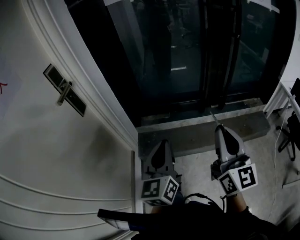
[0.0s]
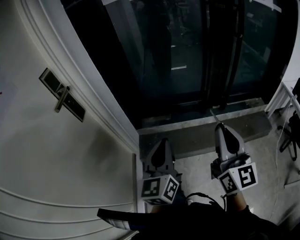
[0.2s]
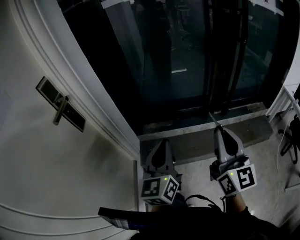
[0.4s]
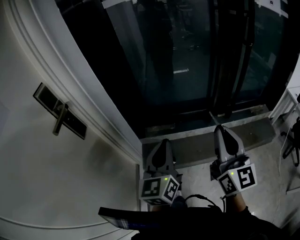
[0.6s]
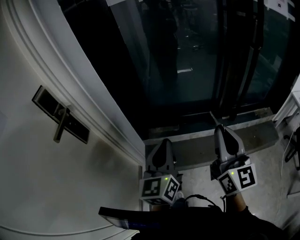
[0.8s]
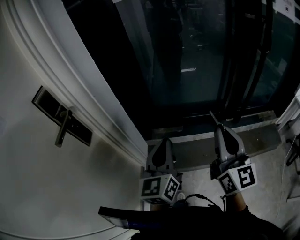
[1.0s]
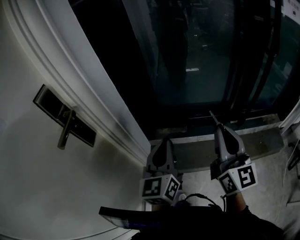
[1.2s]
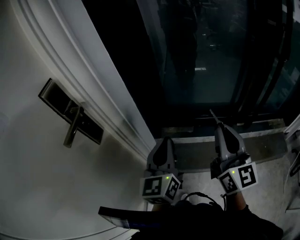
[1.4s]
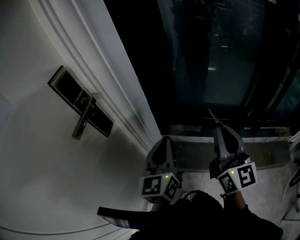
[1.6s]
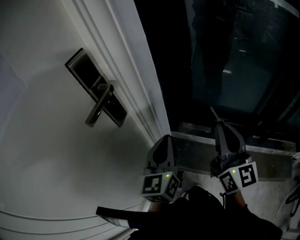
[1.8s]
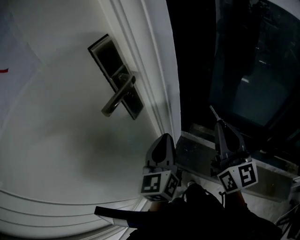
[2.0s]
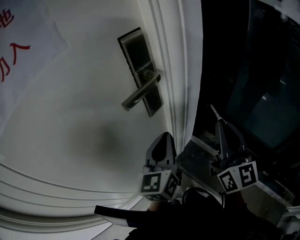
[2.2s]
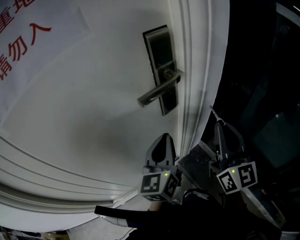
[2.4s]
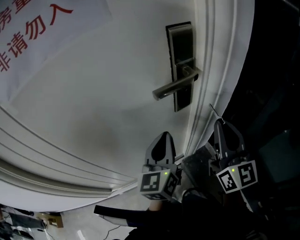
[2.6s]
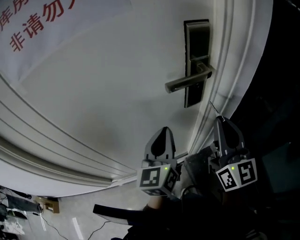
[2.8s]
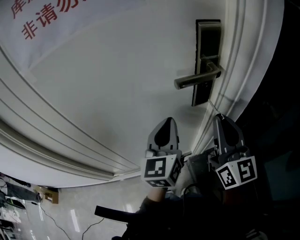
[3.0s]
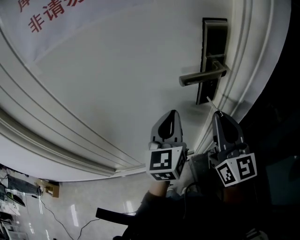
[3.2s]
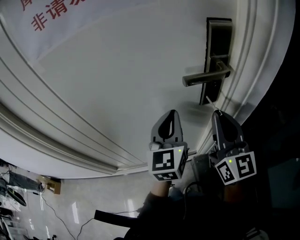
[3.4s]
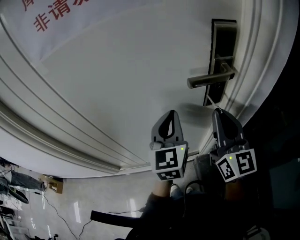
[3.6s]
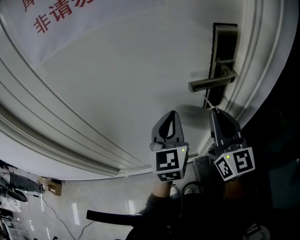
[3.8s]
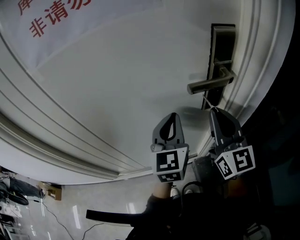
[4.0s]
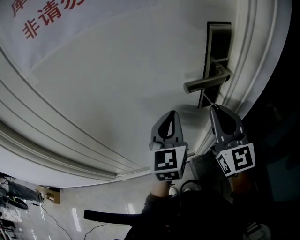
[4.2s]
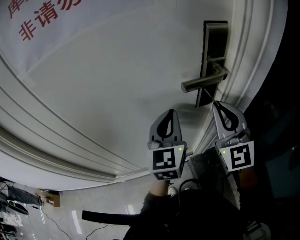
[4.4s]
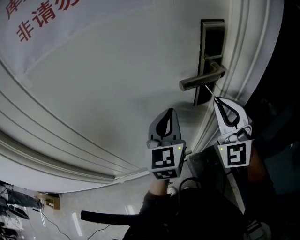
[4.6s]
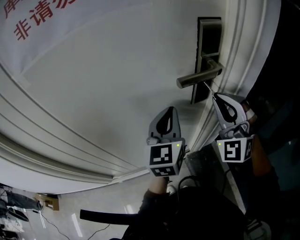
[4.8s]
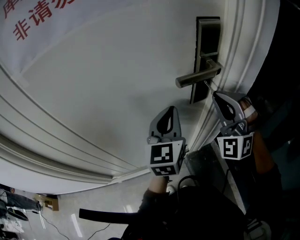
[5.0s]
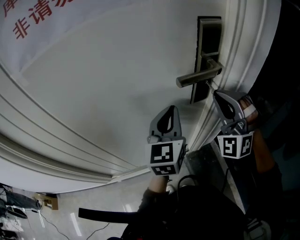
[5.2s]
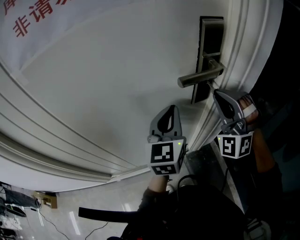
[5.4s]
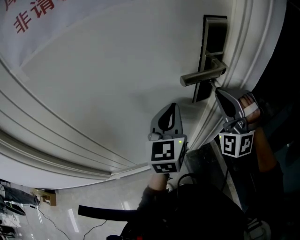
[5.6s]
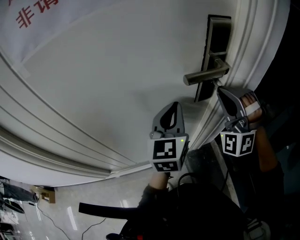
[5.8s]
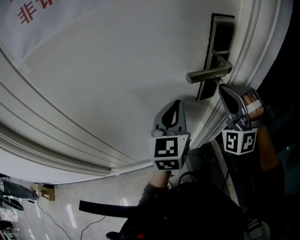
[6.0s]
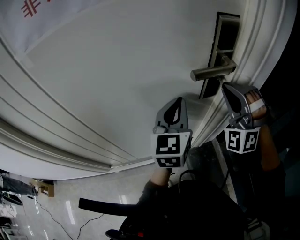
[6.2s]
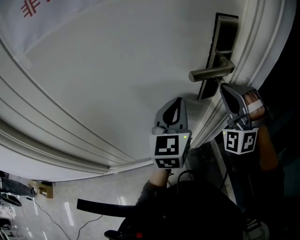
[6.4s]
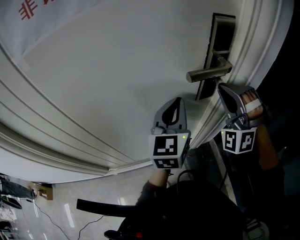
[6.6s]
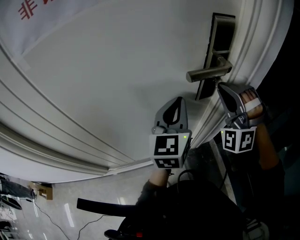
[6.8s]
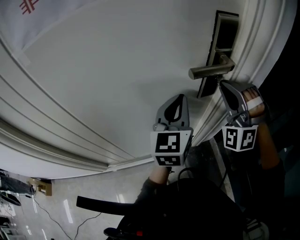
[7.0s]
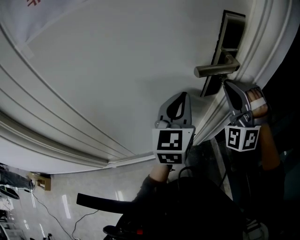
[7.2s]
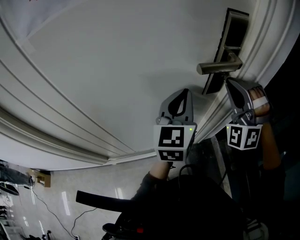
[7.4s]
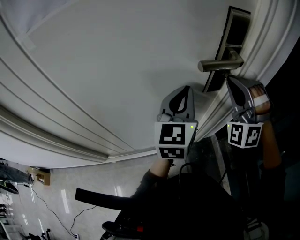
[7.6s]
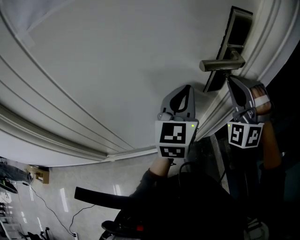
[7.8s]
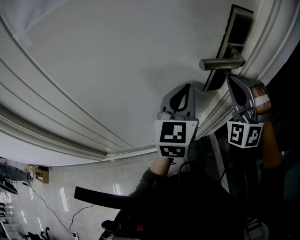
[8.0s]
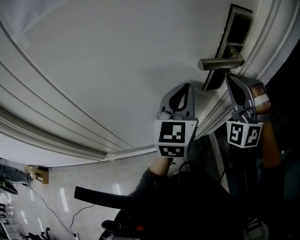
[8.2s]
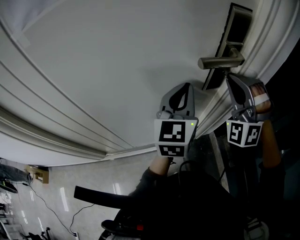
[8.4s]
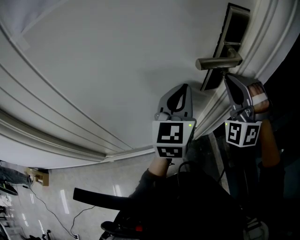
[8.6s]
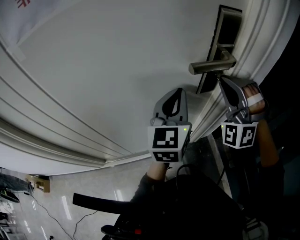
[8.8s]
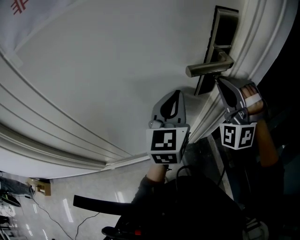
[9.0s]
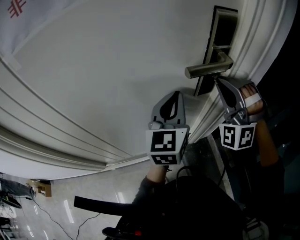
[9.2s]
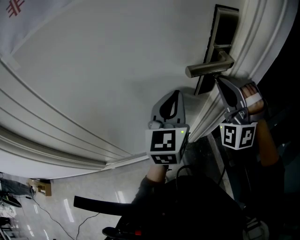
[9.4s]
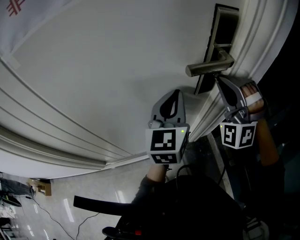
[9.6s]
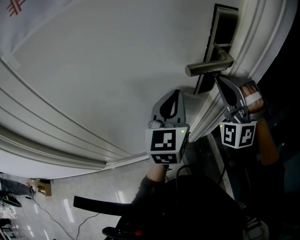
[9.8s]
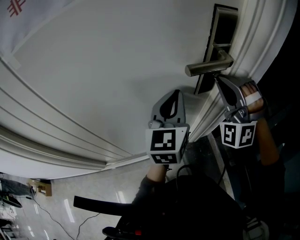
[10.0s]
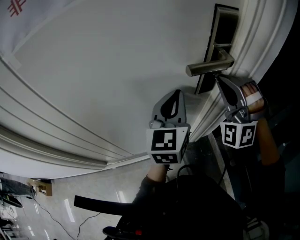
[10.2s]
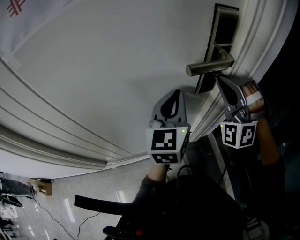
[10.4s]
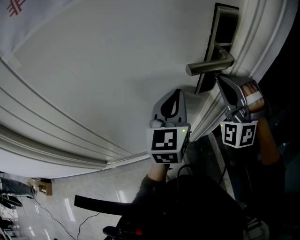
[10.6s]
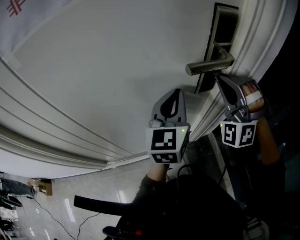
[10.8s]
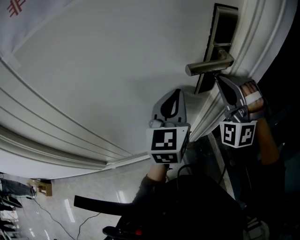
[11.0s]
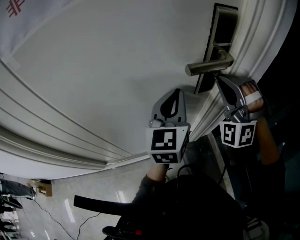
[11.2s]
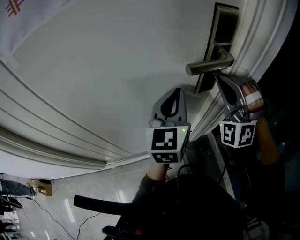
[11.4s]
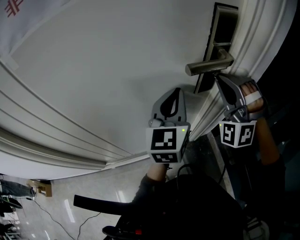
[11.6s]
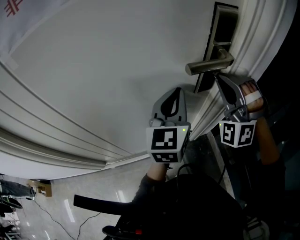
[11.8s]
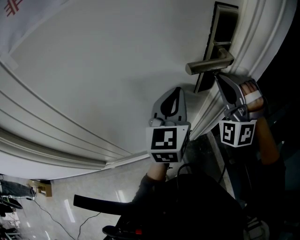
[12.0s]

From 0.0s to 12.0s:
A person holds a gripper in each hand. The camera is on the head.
From 0.0s to 1.6s: The two grippers go approximately 30 cm forward and to the left.
From 1.6s to 3.0s: The left gripper shifts by about 25 cm, and turns by about 60 degrees; the right gripper changes place by about 30 cm, and swivels approximately 60 degrees.
From 3.0s to 4.4s: The right gripper moves forward, about 5 cm, and rotates roughly 30 degrees.
From 4.4s to 6.0s: The right gripper rolls counterclockwise, seen from behind, by about 60 degrees.
From 6.0s to 10.4s: Neither gripper changes place.
From 10.4s to 12.0s: Neither gripper changes place.

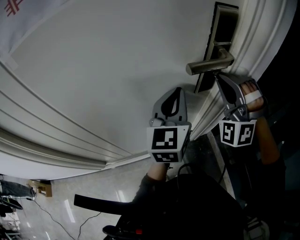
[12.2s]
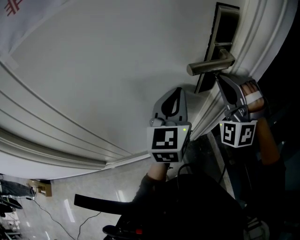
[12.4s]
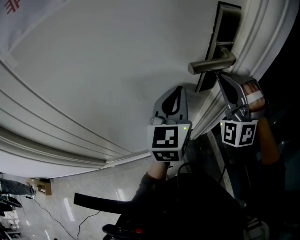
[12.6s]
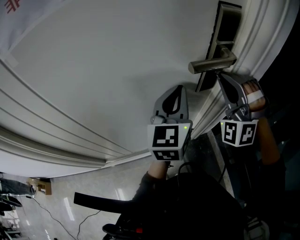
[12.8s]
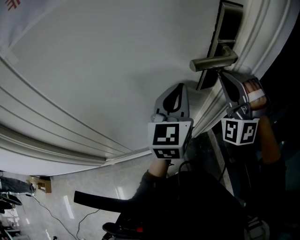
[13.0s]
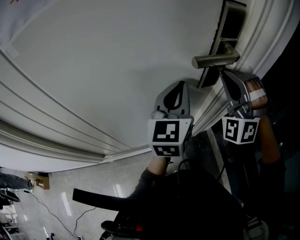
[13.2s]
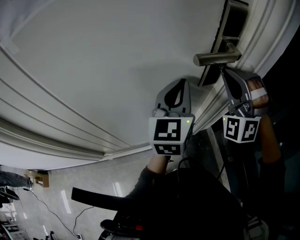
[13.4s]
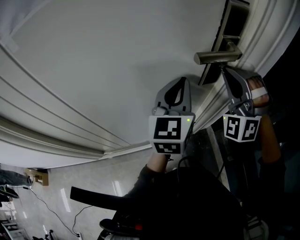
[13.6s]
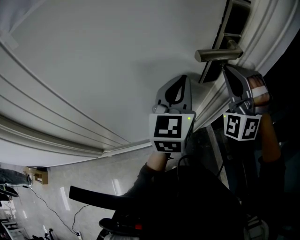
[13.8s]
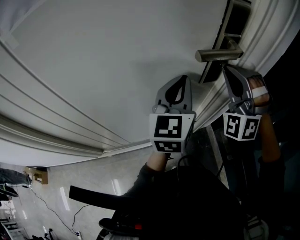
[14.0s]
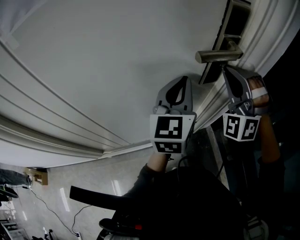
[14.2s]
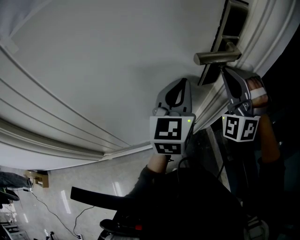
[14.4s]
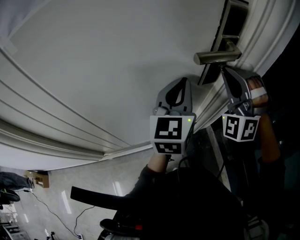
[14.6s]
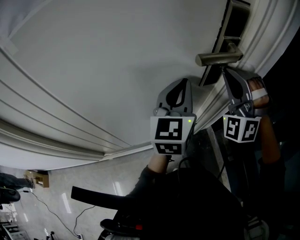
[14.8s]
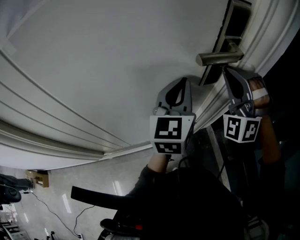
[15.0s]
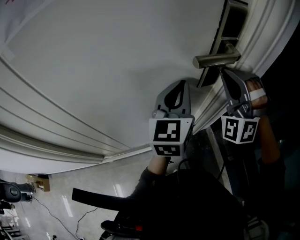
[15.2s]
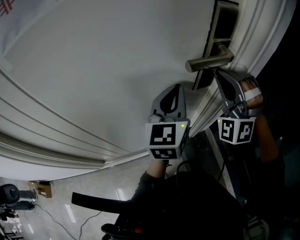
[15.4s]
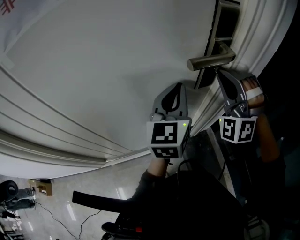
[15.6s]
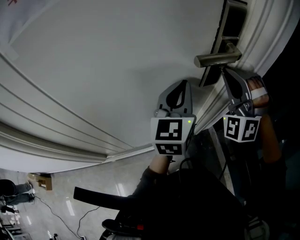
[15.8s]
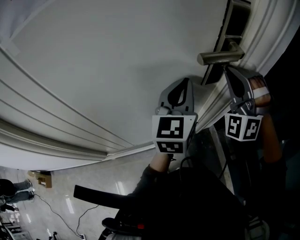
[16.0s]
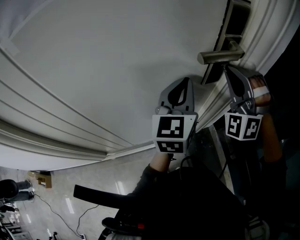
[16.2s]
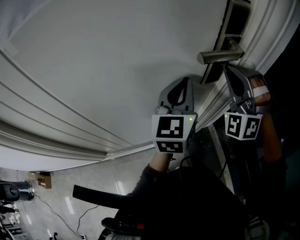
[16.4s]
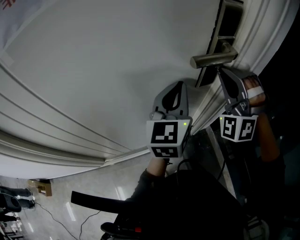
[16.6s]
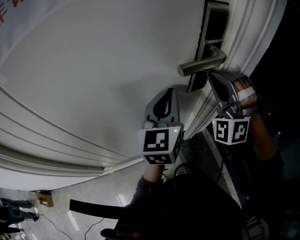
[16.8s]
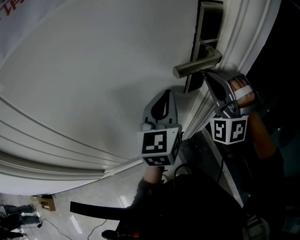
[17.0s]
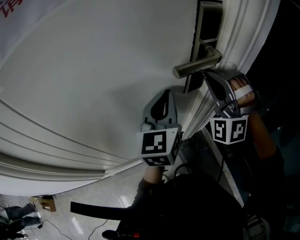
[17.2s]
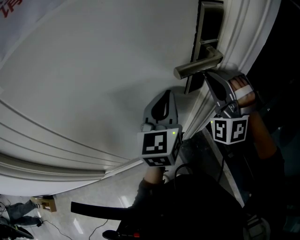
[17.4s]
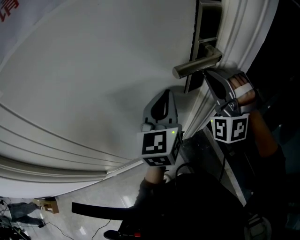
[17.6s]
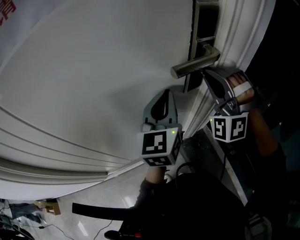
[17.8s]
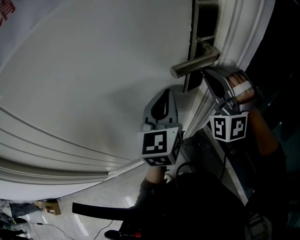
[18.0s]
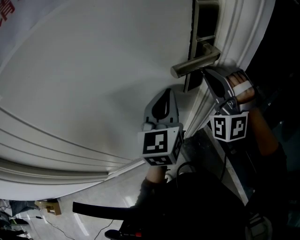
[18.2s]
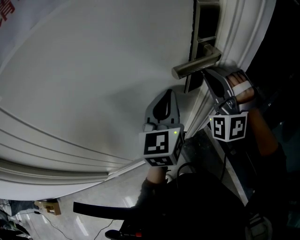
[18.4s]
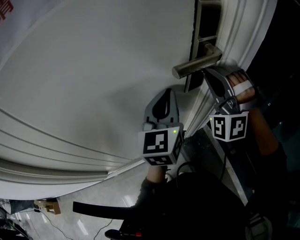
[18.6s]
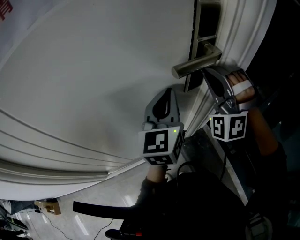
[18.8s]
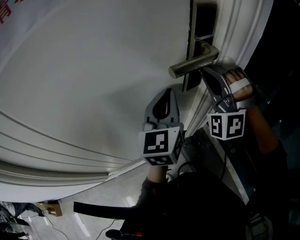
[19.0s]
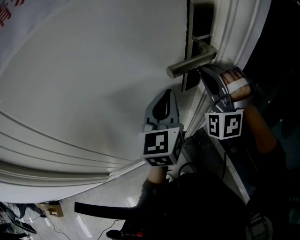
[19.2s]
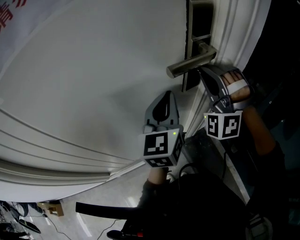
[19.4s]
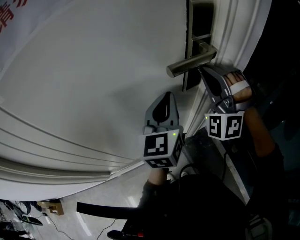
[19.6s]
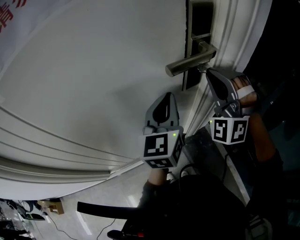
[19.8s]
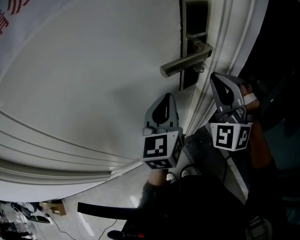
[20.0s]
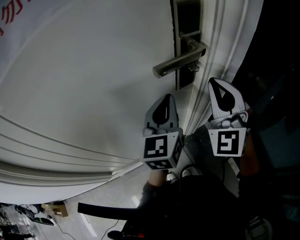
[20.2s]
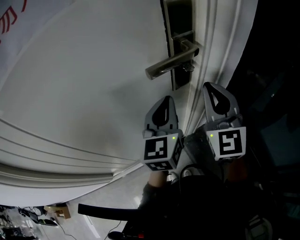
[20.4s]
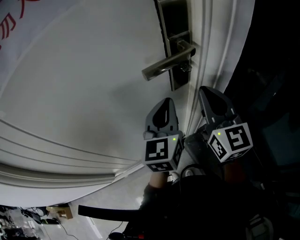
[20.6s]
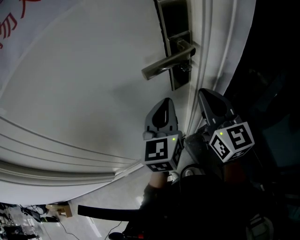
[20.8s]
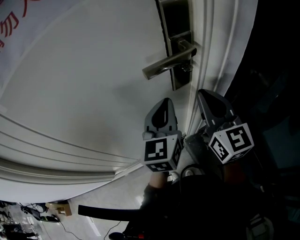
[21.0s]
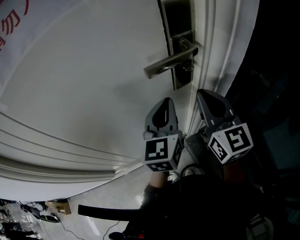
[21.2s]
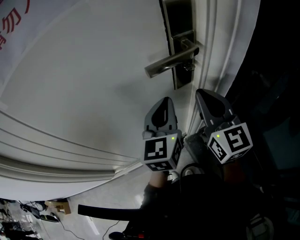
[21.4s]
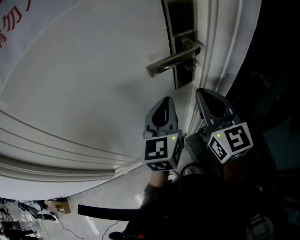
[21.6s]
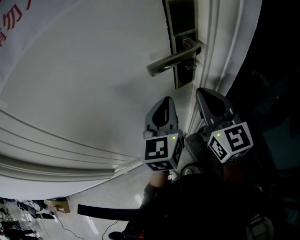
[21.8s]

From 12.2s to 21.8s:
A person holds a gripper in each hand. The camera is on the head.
From 12.2s to 18.6s: Both grippers stay about where they are.
From 18.6s to 20.2s: The right gripper ends up about 5 cm from where it was, and rolls clockwise, seen from behind, by approximately 40 degrees.
From 20.2s to 21.8s: The right gripper twists some 50 degrees clockwise, seen from behind.

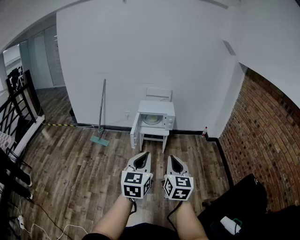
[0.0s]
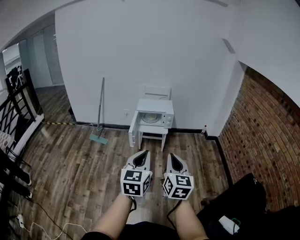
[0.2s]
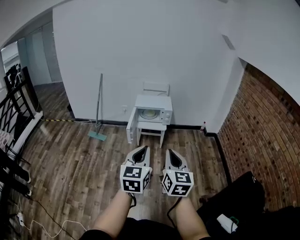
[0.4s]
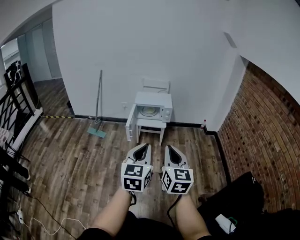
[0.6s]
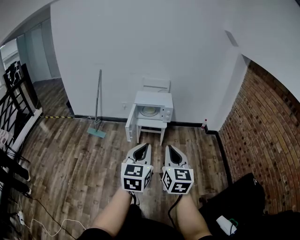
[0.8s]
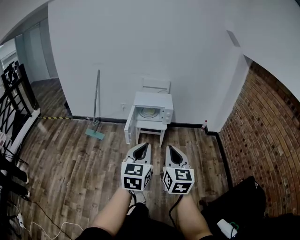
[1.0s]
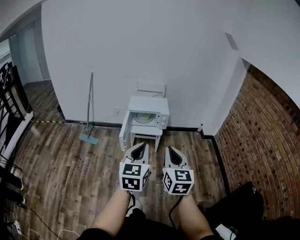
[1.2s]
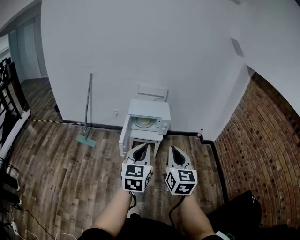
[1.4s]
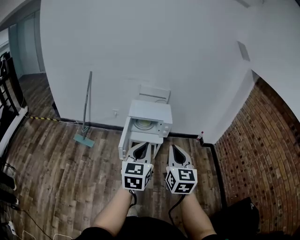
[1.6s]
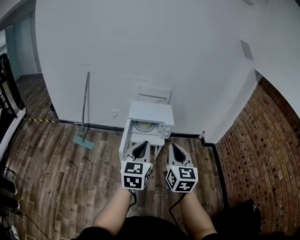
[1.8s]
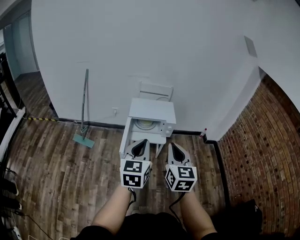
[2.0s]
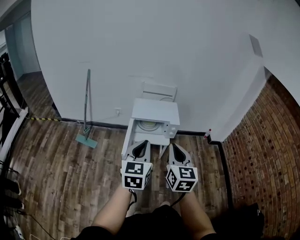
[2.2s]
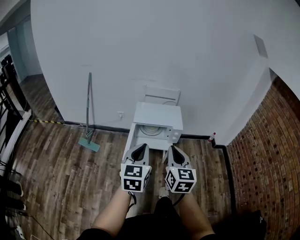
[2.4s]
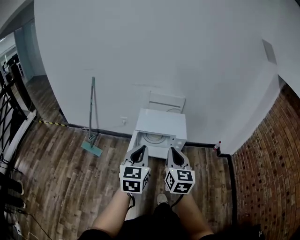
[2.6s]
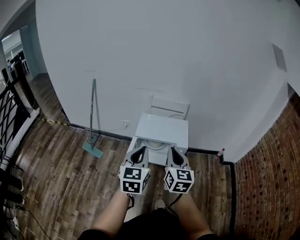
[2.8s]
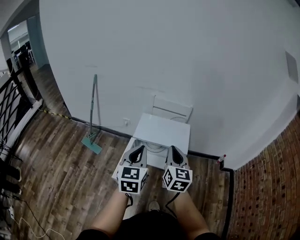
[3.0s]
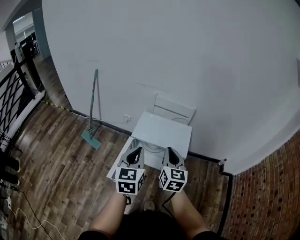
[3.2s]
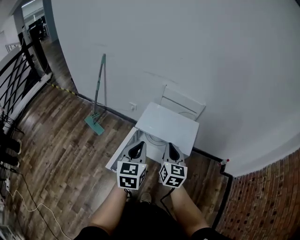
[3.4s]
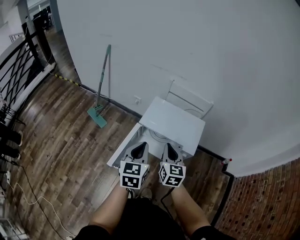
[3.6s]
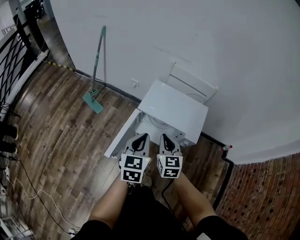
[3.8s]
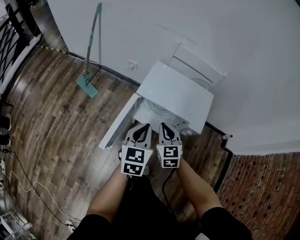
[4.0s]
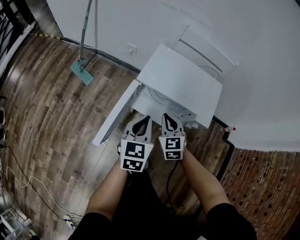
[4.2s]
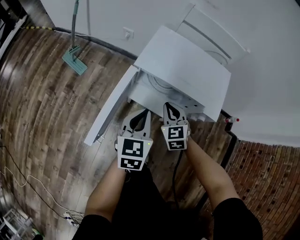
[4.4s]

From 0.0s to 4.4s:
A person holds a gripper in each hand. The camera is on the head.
From 0.0s to 1.4s: Both grippers travel together forward, about 25 cm.
From 1.4s to 3.0s: The grippers both shift forward by roughly 40 cm.
From 3.0s to 4.4s: Both grippers travel together downward, approximately 40 cm. The right gripper rotates some 50 degrees.
